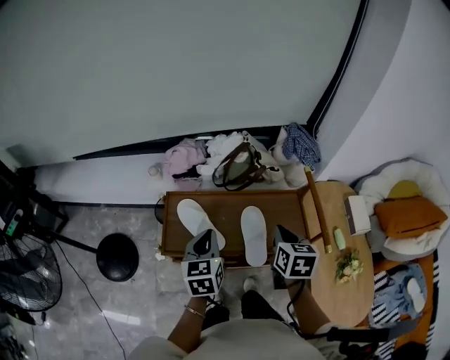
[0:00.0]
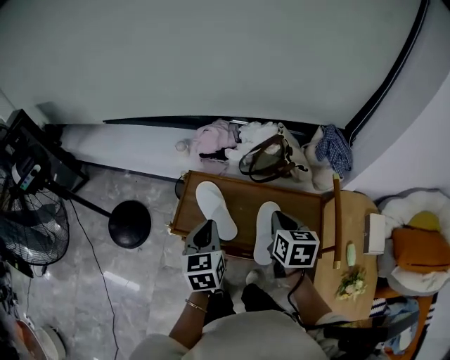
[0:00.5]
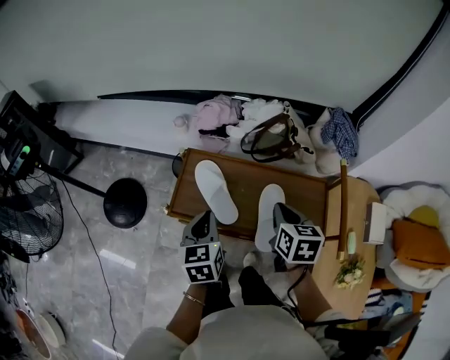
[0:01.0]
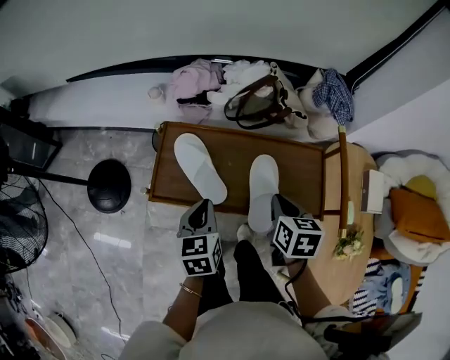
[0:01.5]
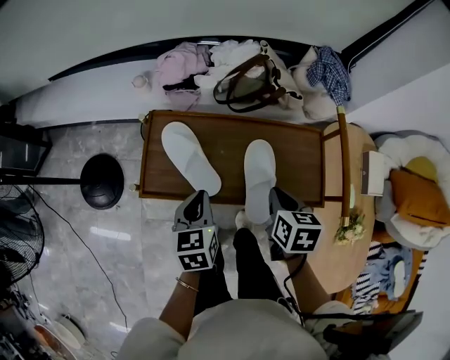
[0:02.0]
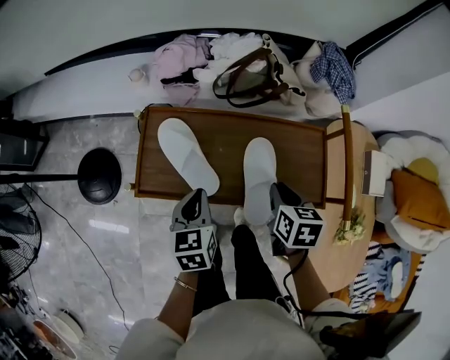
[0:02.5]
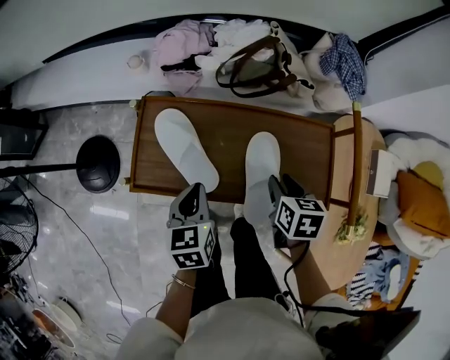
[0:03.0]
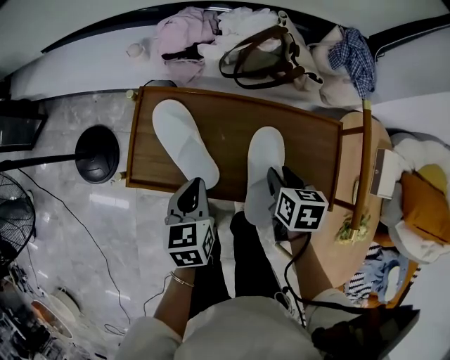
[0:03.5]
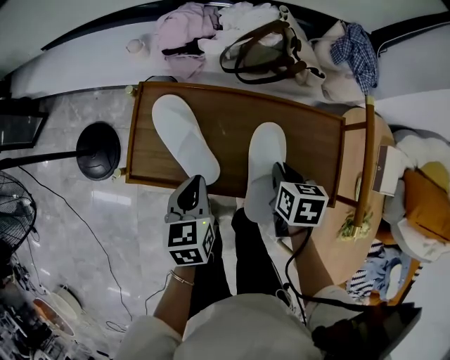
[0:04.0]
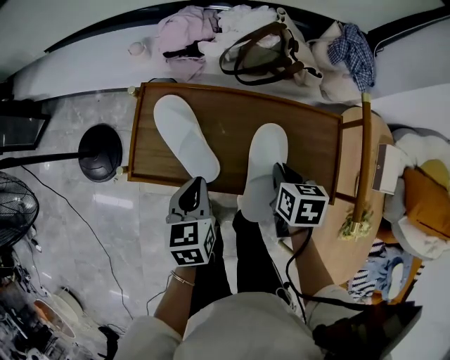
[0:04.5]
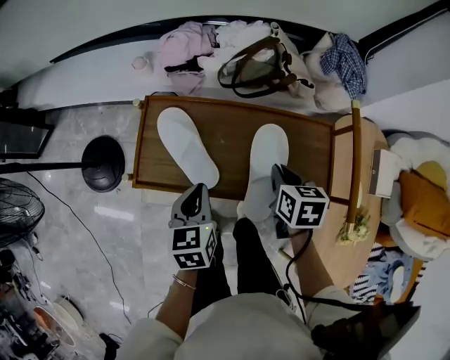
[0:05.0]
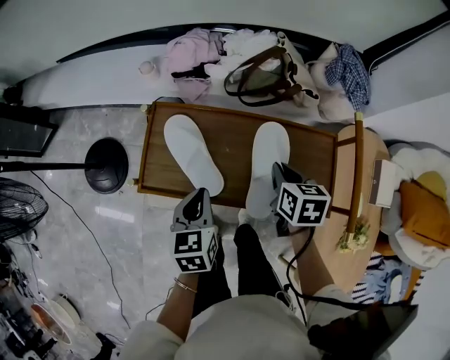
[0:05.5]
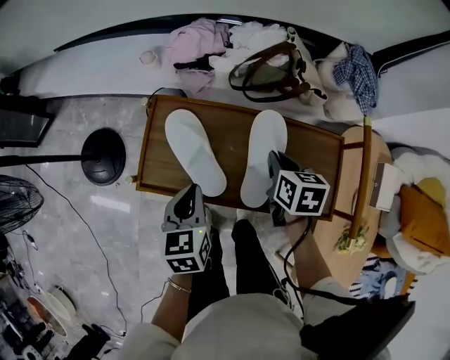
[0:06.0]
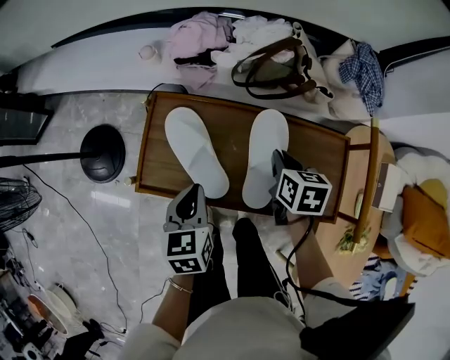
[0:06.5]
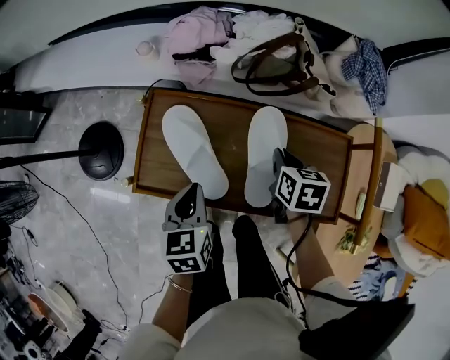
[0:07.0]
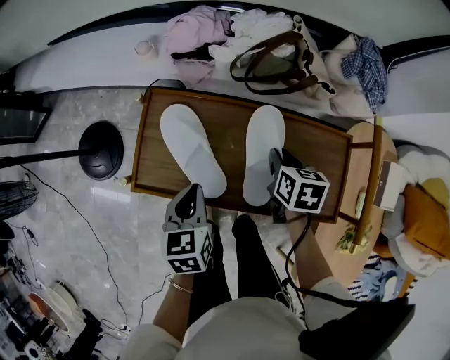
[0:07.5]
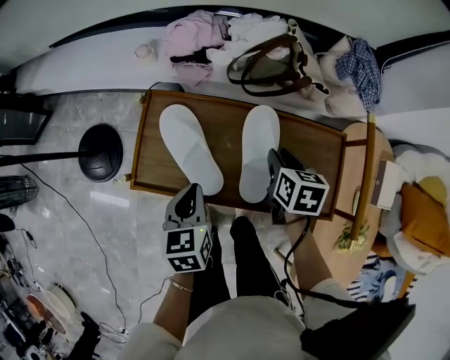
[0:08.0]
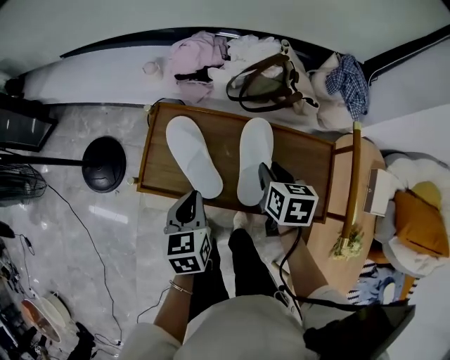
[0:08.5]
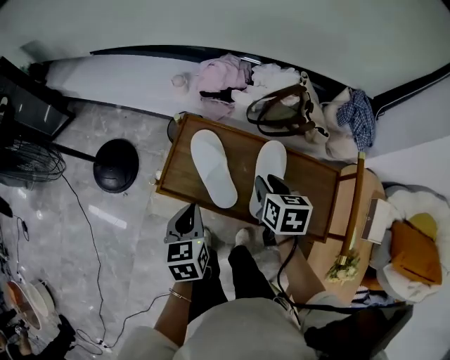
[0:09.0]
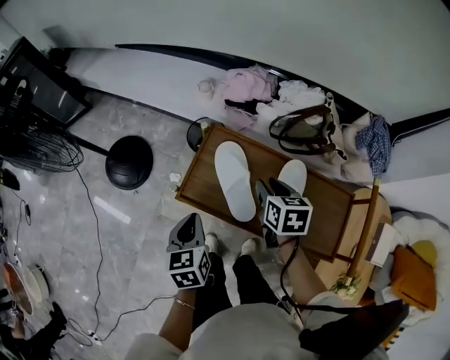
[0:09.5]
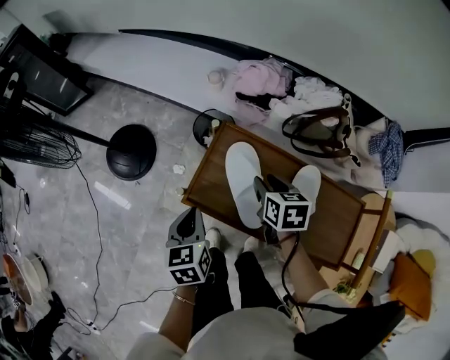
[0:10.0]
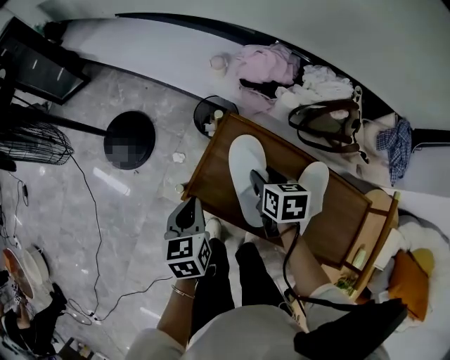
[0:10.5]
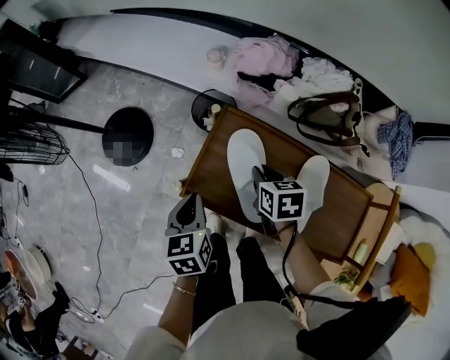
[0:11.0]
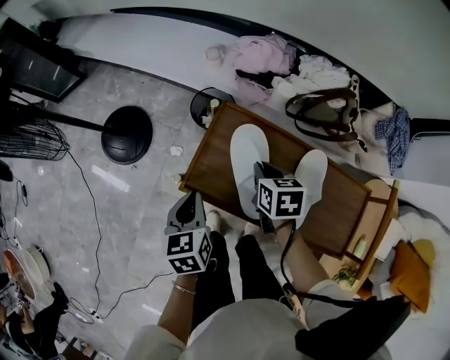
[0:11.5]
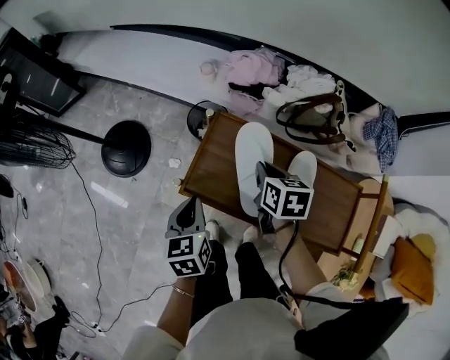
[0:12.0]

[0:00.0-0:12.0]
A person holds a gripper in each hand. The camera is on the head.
0.0 to 2.0 s: Both grippers move downward, some 10 cm.
2.0 to 4.0 s: The right gripper goes about 10 cm downward, and opens, then closes once more.
4.0 to 6.0 s: The right gripper heads forward, covering roughly 10 cm.
6.0 to 8.0 s: The right gripper opens.
8.0 to 10.0 s: The right gripper moves to the left and forward, approximately 20 cm, and rotates some 20 degrees. Meanwhile the left gripper is displaced to the left by about 15 cm.
10.0 to 12.0 s: The right gripper closes.

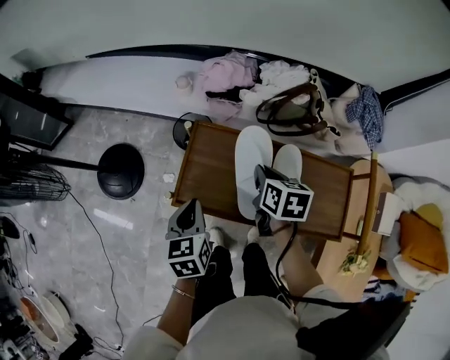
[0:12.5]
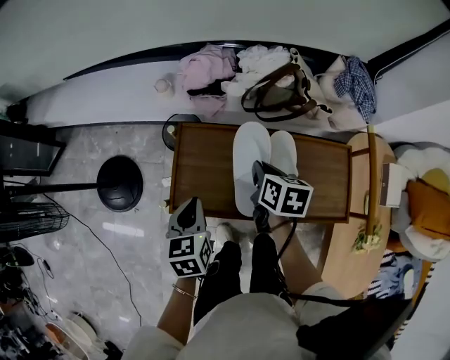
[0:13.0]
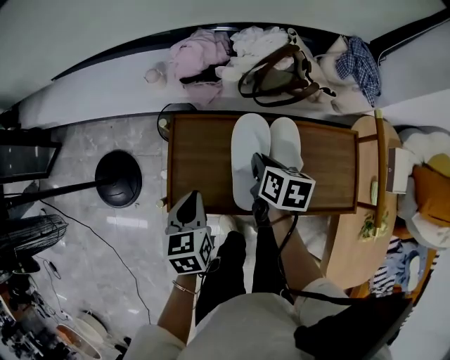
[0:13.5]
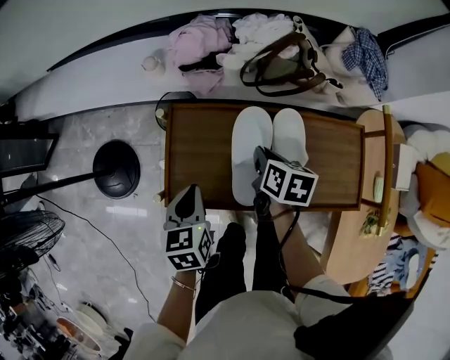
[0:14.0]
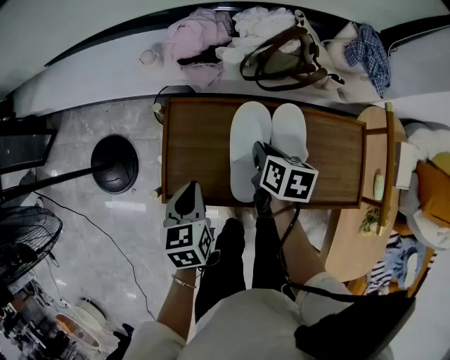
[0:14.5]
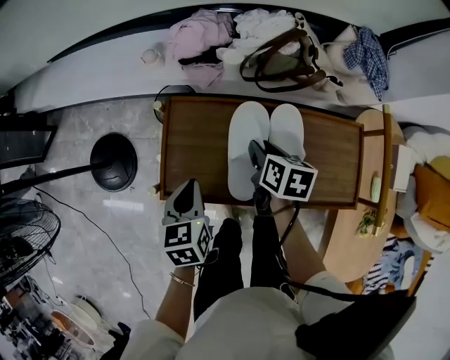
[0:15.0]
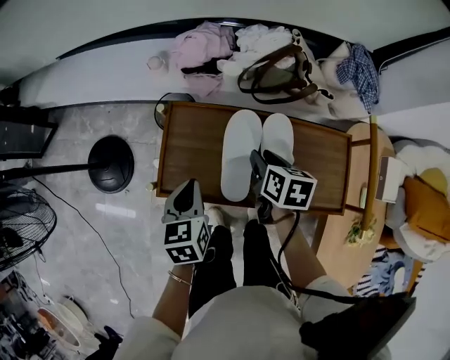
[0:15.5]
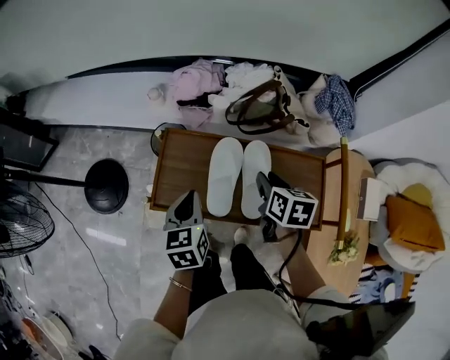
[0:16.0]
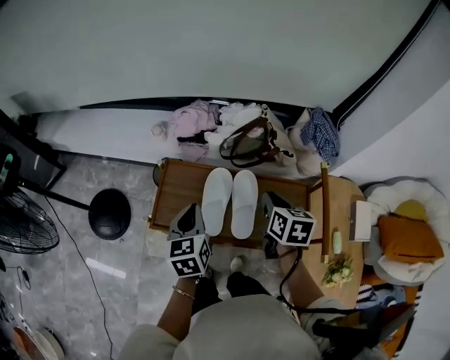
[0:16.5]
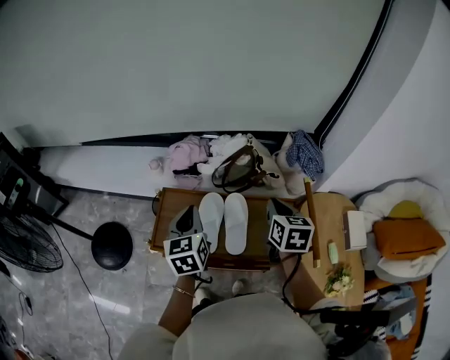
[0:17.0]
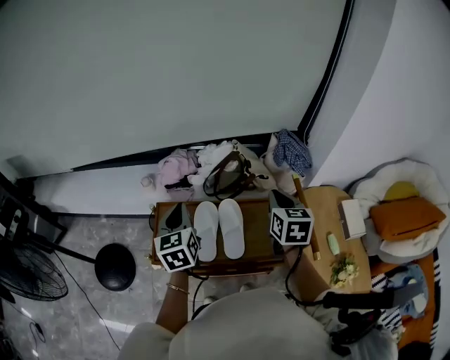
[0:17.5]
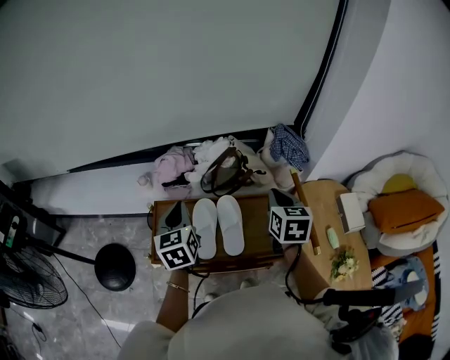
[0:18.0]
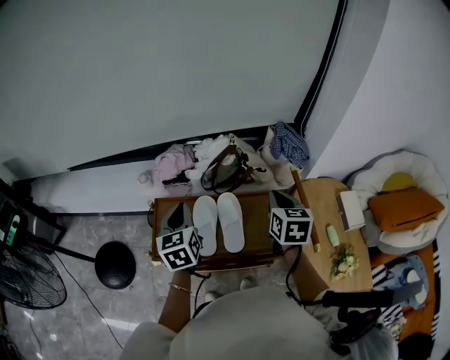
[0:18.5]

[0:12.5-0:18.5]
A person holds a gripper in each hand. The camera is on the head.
12.5 to 14.5 s: The left gripper shifts by approximately 5 cm. Meanwhile the right gripper heads downward, covering roughly 10 cm.
14.5 to 16.5 s: Both grippers move upward and to the right, about 20 cm. The right gripper swivels roughly 20 degrees, and opens, then closes again.
16.5 to 18.5 s: The right gripper heads upward and to the right, covering approximately 10 cm; the left gripper moves upward and forward, some 10 cm.

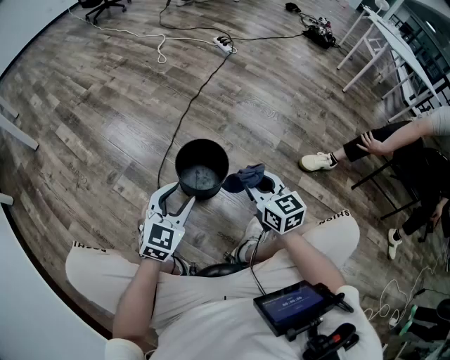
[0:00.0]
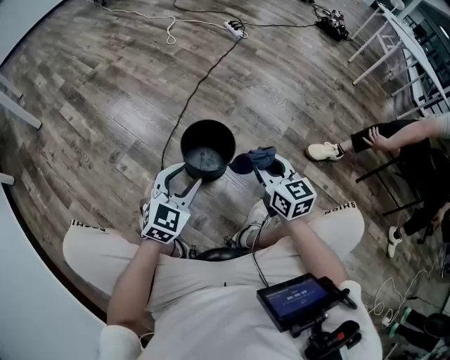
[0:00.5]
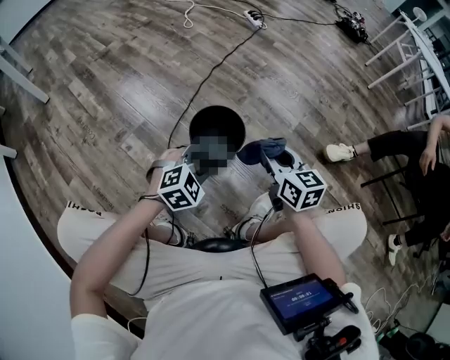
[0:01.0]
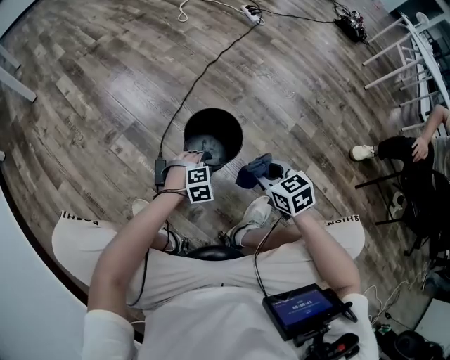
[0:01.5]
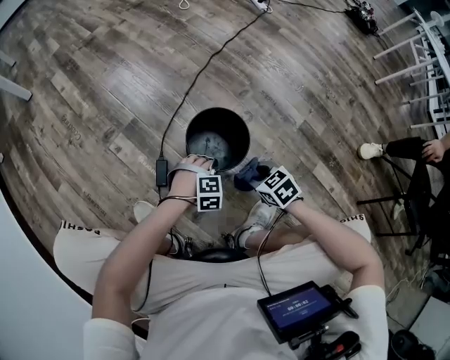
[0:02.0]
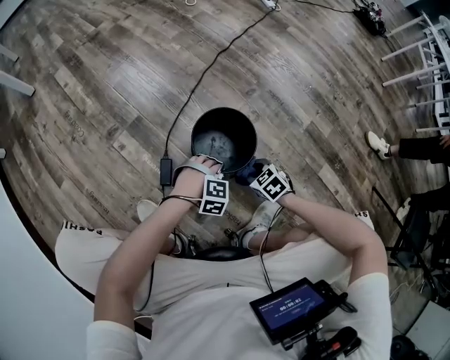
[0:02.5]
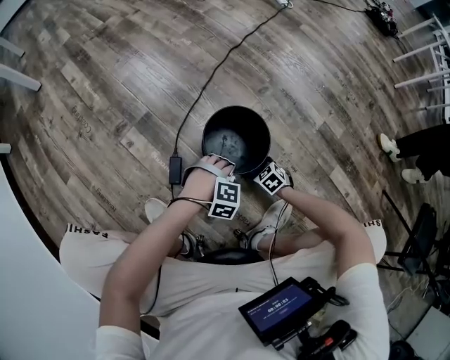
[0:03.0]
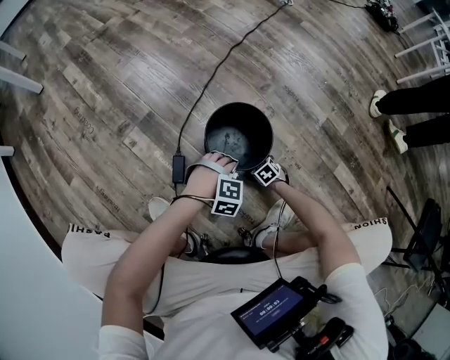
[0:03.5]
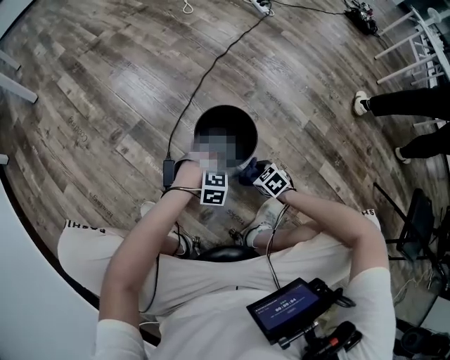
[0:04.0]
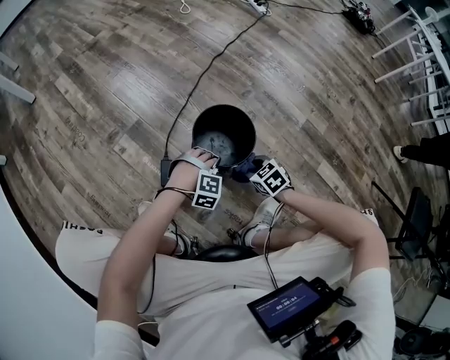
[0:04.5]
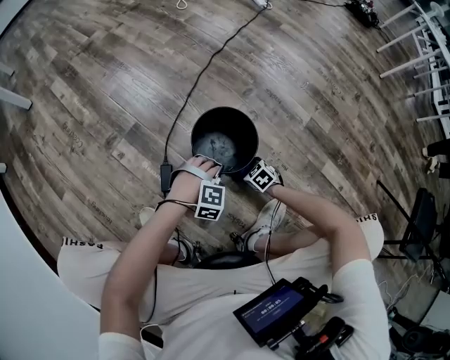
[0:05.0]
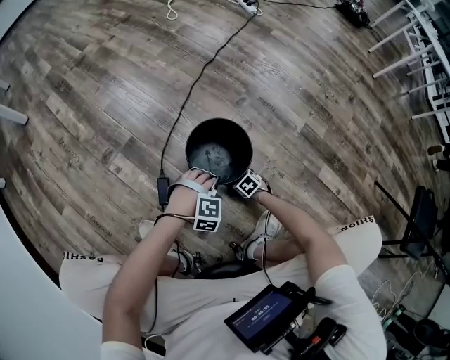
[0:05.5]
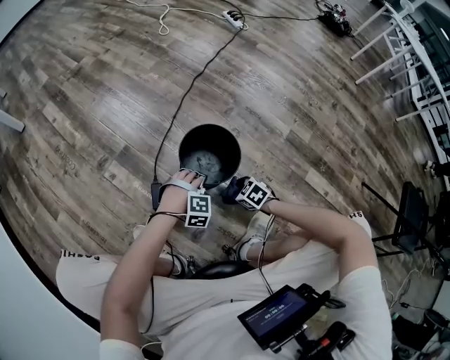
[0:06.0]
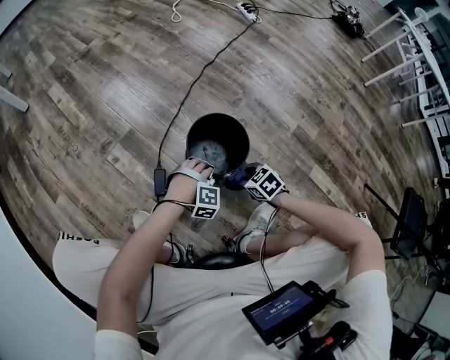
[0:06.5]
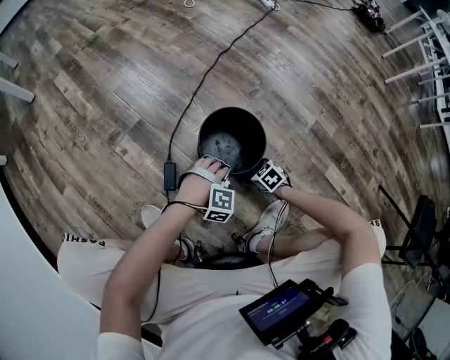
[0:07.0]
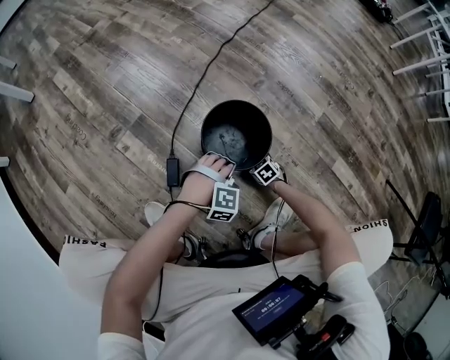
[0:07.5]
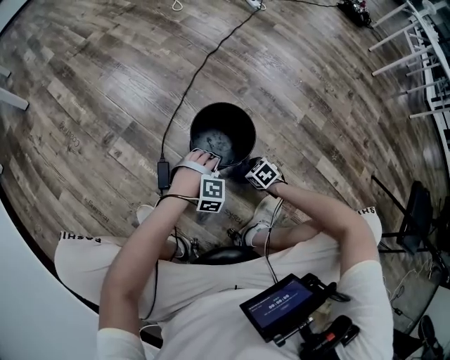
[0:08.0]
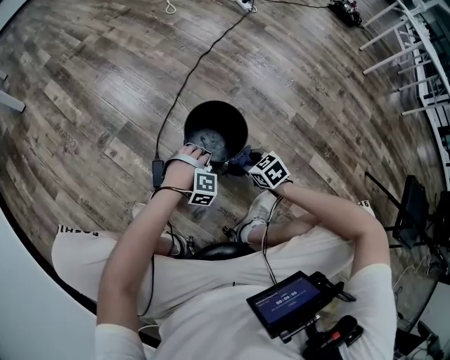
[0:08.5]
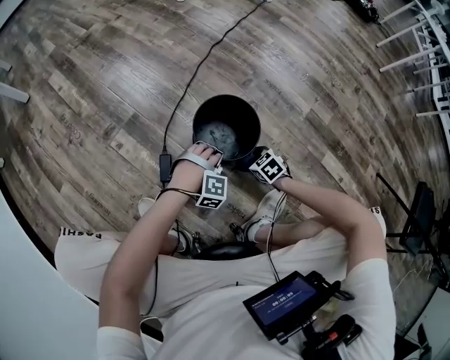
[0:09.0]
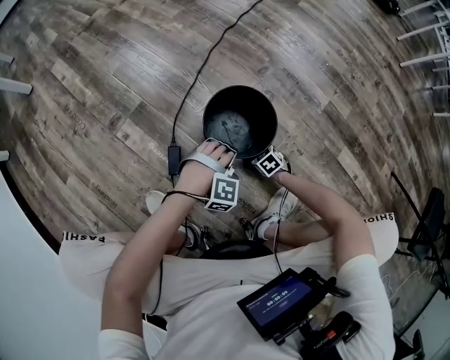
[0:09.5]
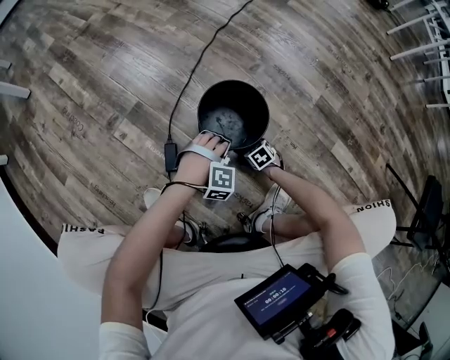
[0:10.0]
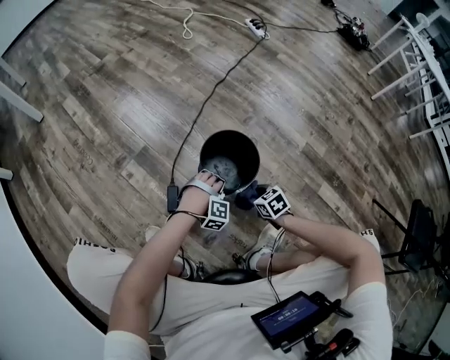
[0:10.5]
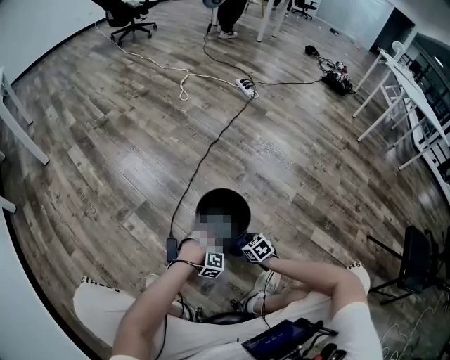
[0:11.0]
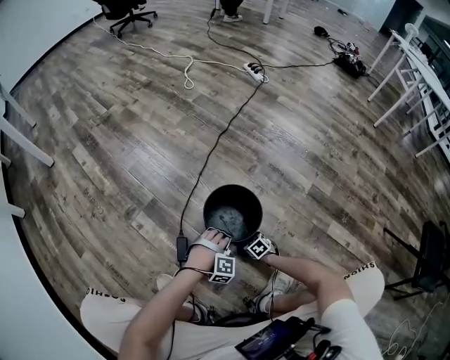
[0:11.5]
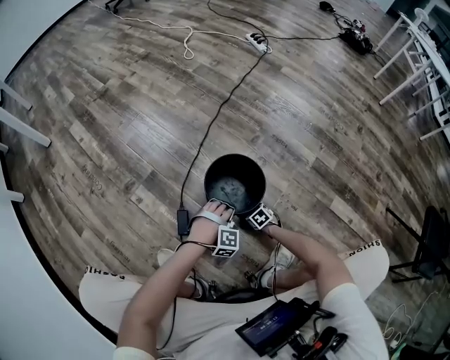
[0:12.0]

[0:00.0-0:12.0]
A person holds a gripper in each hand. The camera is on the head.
0.0 to 2.0 s: The right gripper moves downward, some 20 cm, and angles its fingers downward, by about 40 degrees.
2.0 to 4.0 s: The right gripper shifts about 10 cm downward.
4.0 to 6.0 s: The right gripper goes up and down, approximately 20 cm each way, reversing 2 times.
6.0 to 8.0 s: The right gripper goes up and down, about 20 cm each way, reversing 2 times.
8.0 to 10.0 s: The right gripper is displaced downward by about 10 cm.
10.0 to 12.0 s: The right gripper travels upward and back again, approximately 15 cm each way.
